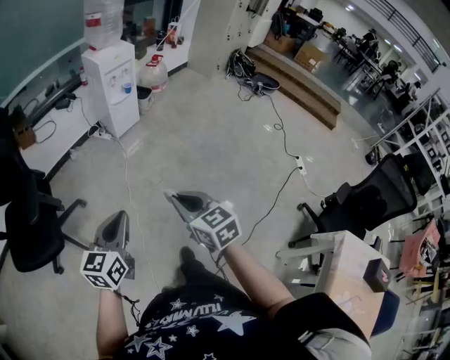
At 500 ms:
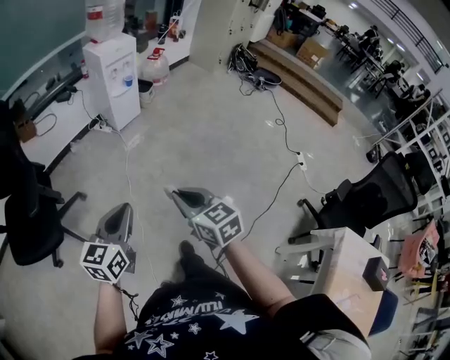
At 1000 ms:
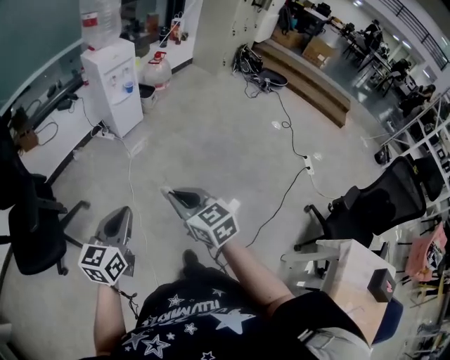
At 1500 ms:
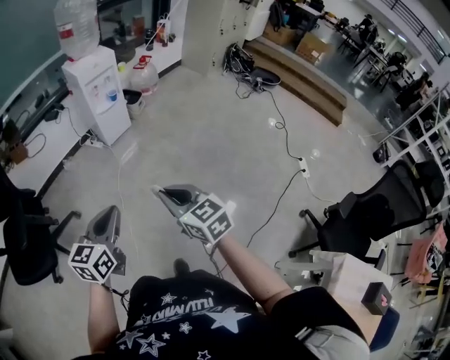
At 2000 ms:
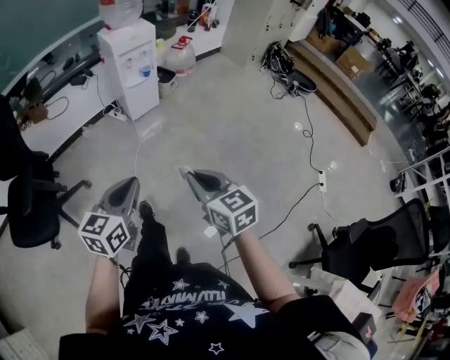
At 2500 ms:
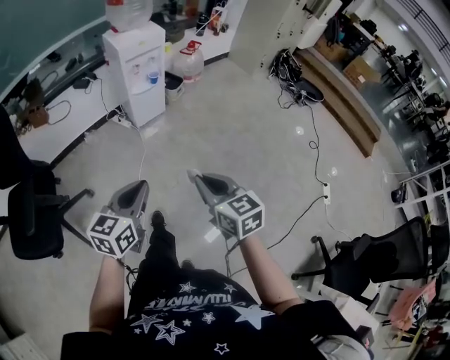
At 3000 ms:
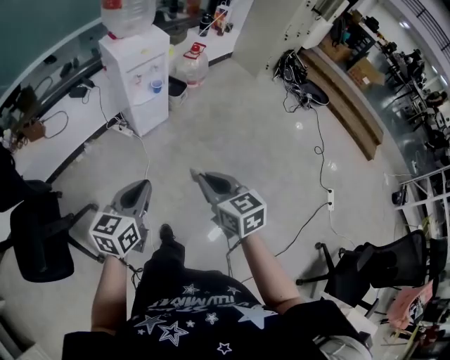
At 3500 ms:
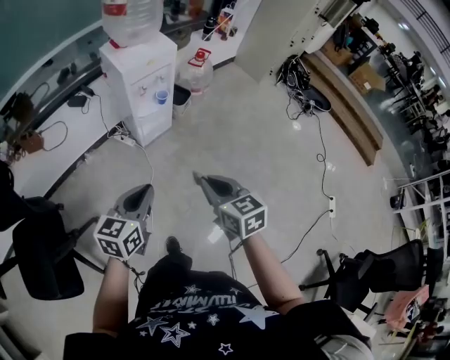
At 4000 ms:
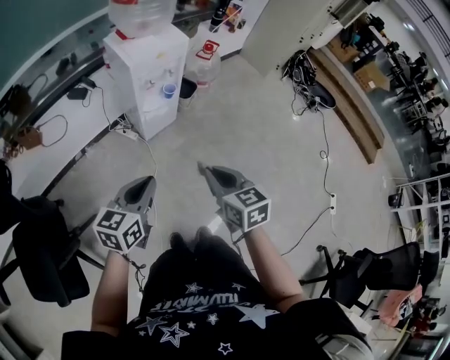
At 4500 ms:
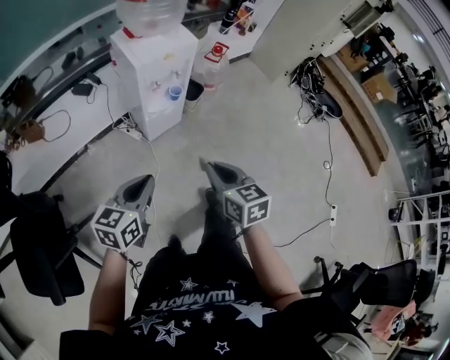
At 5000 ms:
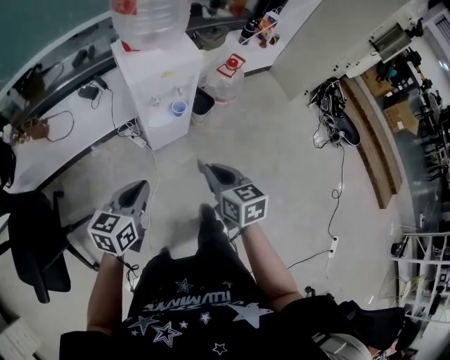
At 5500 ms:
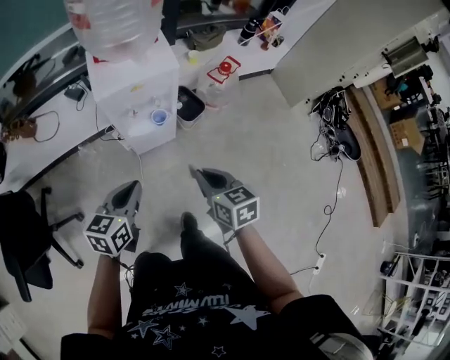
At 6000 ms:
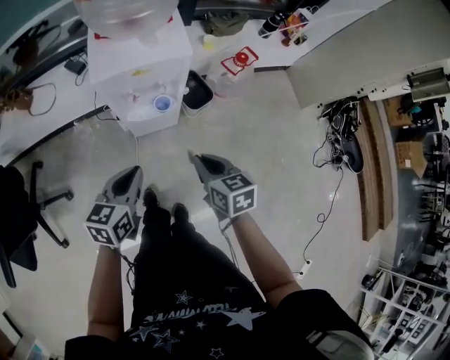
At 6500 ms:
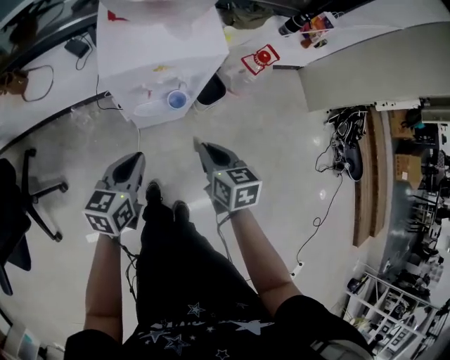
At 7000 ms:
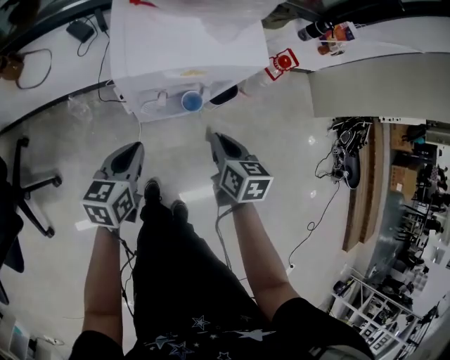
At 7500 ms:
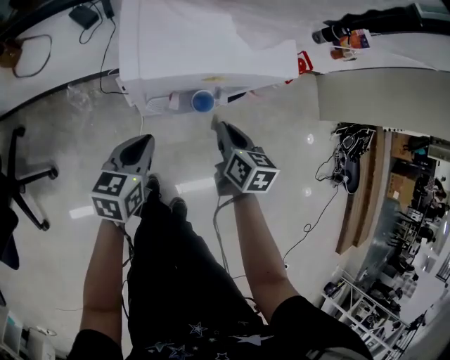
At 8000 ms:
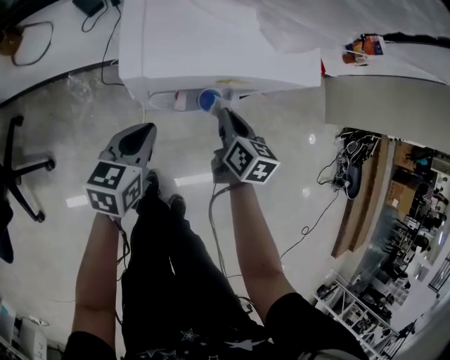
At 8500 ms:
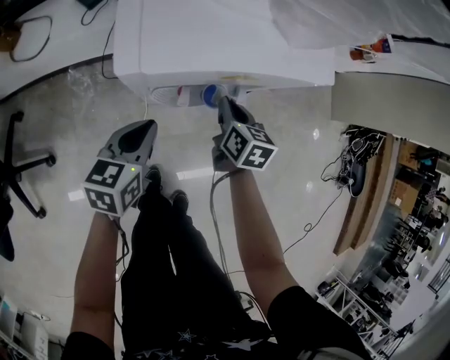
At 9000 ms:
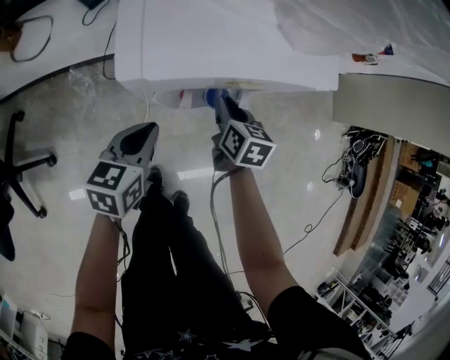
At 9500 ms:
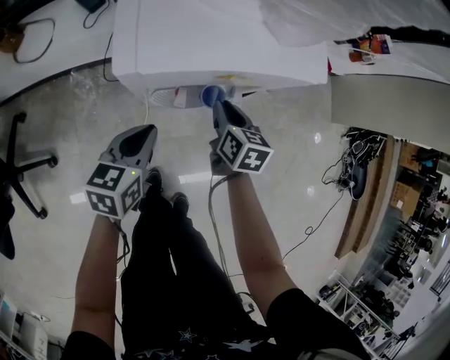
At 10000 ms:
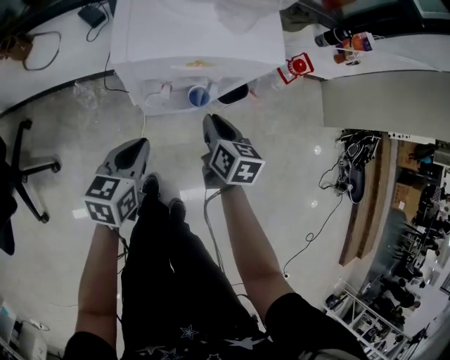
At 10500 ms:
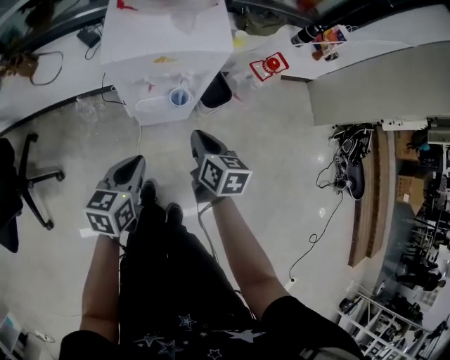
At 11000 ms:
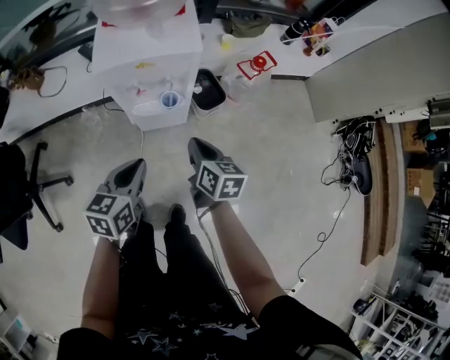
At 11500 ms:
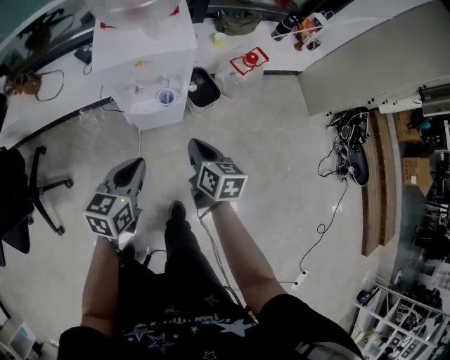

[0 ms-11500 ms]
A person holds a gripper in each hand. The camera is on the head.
0 ms to 2000 ms: The two grippers go roughly 20 cm forward and to the right.
2000 ms to 4000 ms: The two grippers travel together, forward, roughly 40 cm.
4000 ms to 6000 ms: The right gripper moves about 40 cm, and changes its angle by roughly 20 degrees, while the left gripper ends up some 35 cm from where it was, and turns by roughly 30 degrees.
6000 ms to 7500 ms: The left gripper moves downward, forward and to the left, some 25 cm. Meanwhile the right gripper heads forward and downward, covering some 25 cm.
7500 ms to 9500 ms: The right gripper shifts approximately 5 cm downward.
9500 ms to 11500 ms: The left gripper heads upward, backward and to the right, covering roughly 30 cm. The right gripper is displaced backward, upward and to the right by approximately 30 cm.

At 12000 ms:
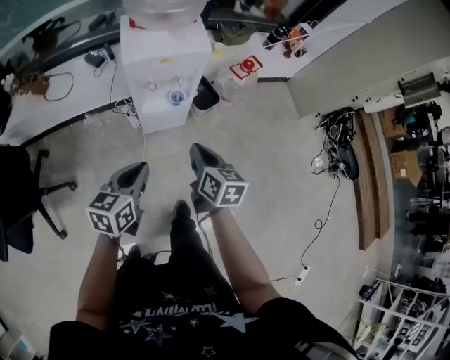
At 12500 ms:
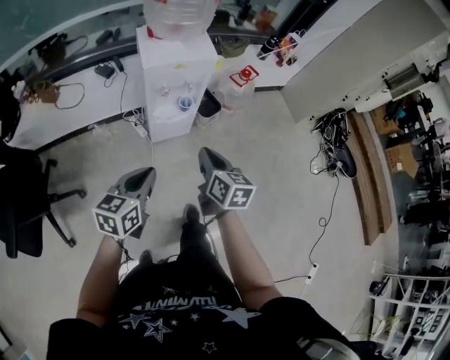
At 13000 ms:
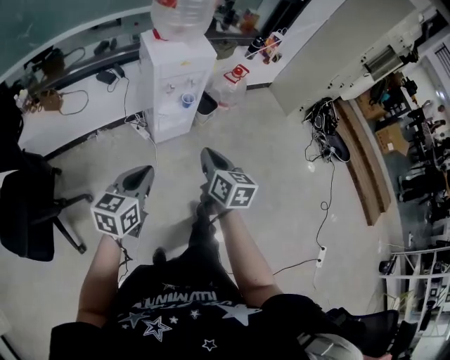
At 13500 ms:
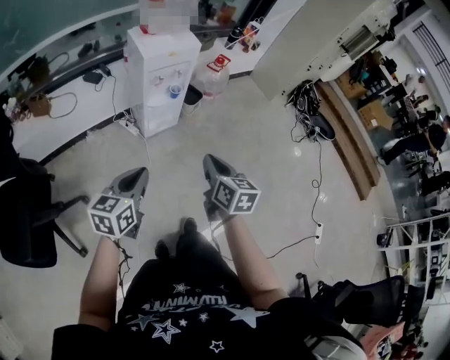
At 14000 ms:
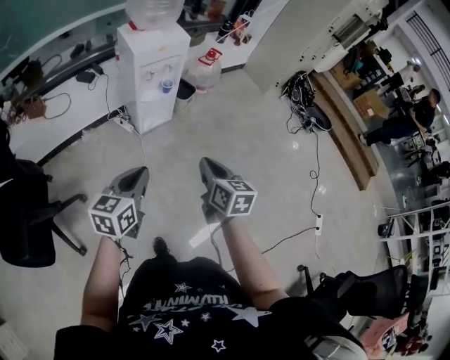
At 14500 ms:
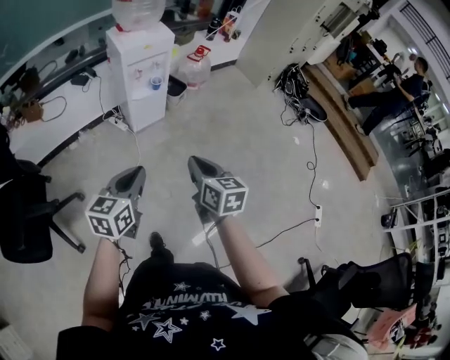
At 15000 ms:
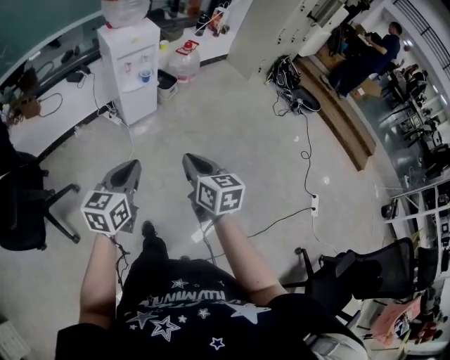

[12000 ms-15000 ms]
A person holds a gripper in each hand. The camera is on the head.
12000 ms to 13500 ms: The left gripper goes about 30 cm backward and to the left. Meanwhile the right gripper moves backward, about 30 cm.
13500 ms to 15000 ms: The two grippers go about 25 cm backward and to the right.

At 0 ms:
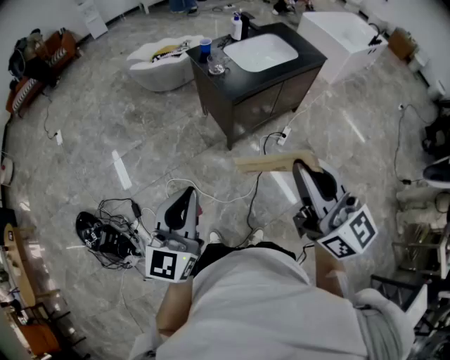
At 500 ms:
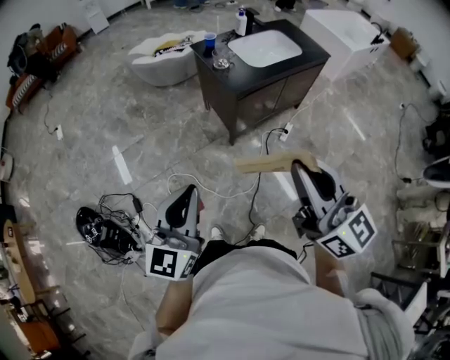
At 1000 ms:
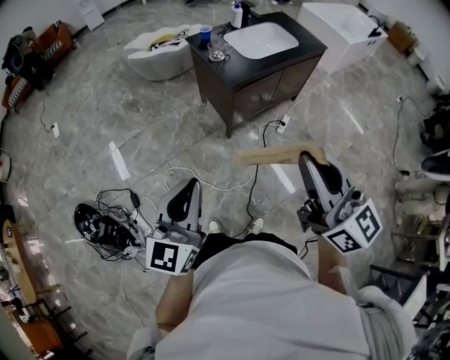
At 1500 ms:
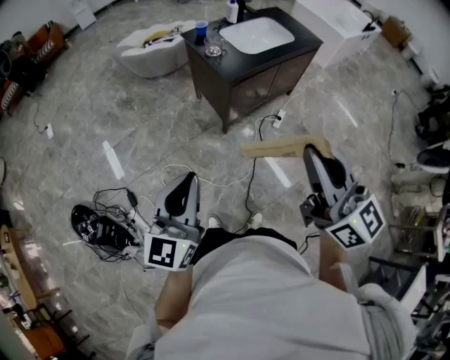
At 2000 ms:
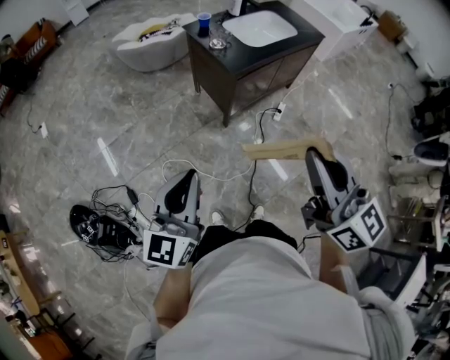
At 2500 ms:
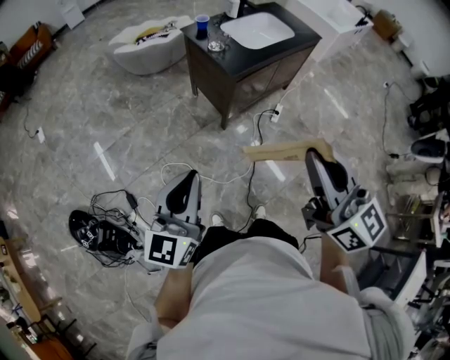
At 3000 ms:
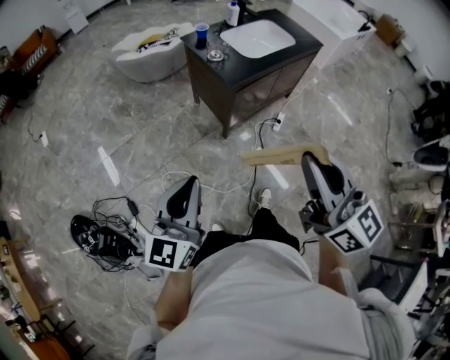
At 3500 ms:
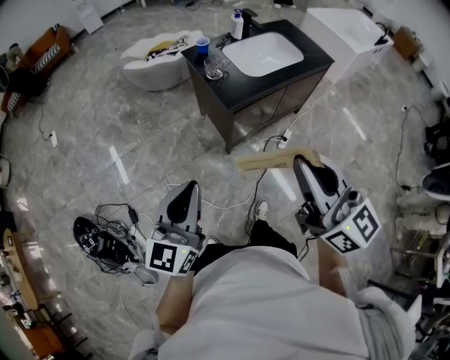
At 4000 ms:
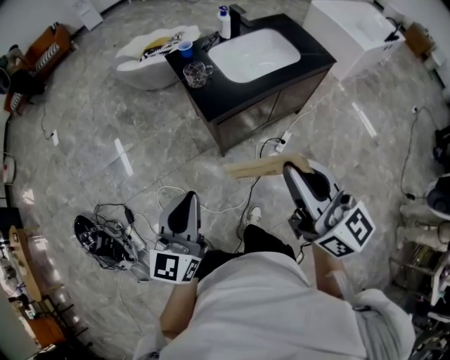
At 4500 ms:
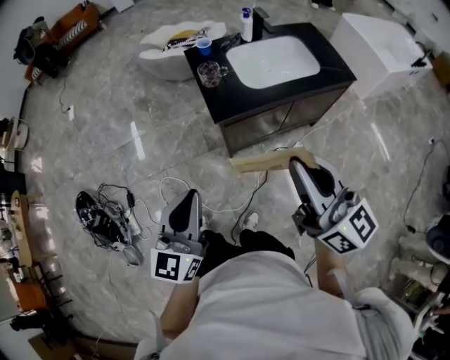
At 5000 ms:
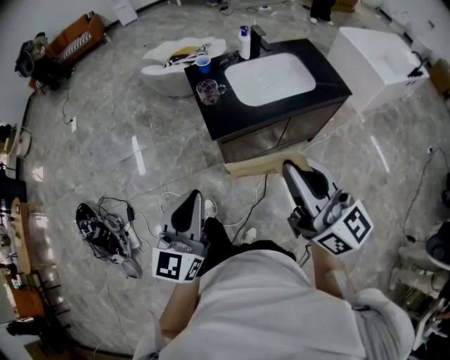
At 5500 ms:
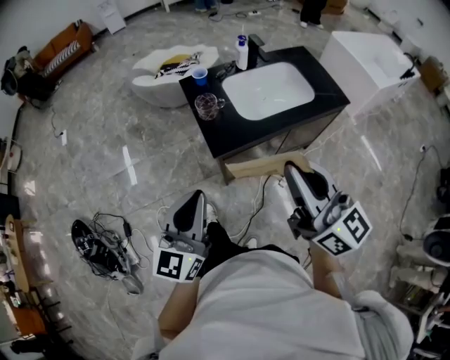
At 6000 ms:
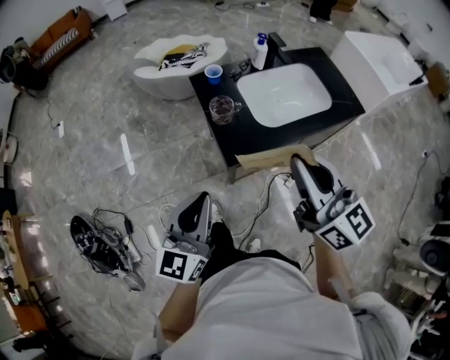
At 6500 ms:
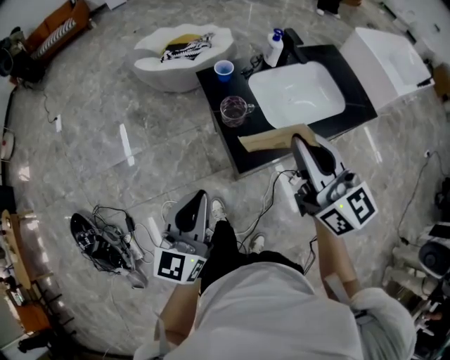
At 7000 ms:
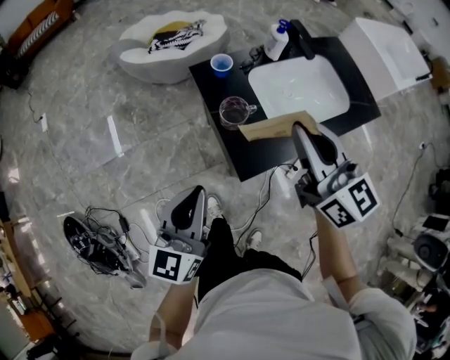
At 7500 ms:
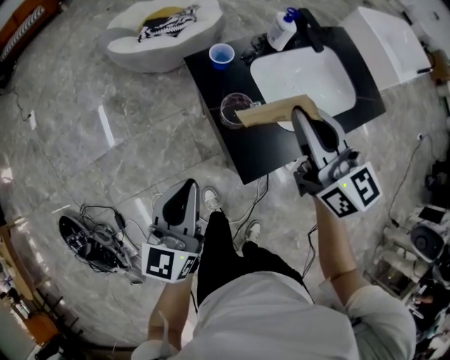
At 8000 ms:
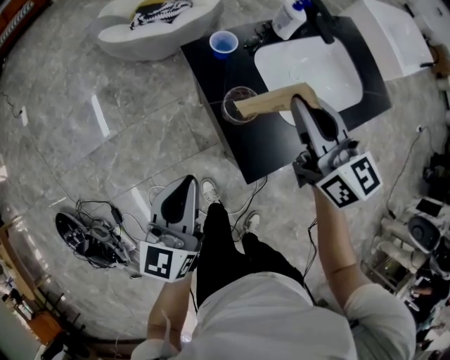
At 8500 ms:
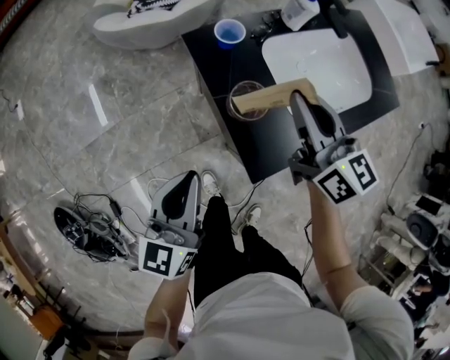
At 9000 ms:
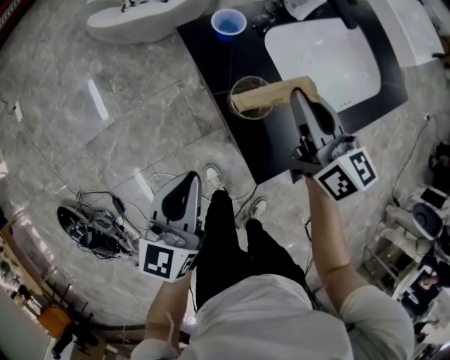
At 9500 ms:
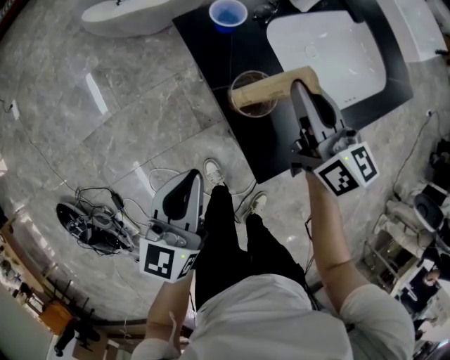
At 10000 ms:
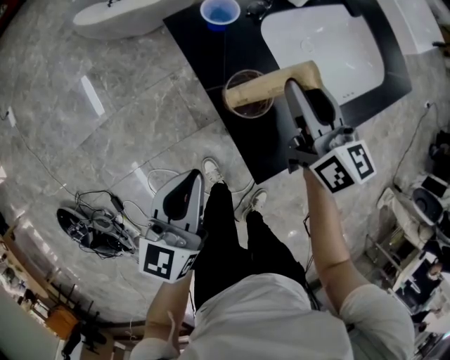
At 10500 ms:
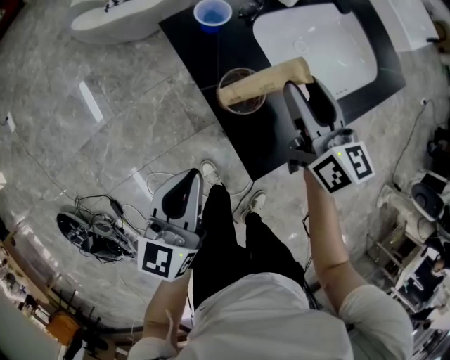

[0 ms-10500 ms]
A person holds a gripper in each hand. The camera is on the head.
0 ms to 2000 ms: The grippers both shift to the left by approximately 5 cm.
2000 ms to 4000 ms: The left gripper shifts approximately 25 cm to the right and forward. Meanwhile the right gripper moves forward and to the right, some 25 cm.
4000 ms to 6500 ms: The grippers both shift forward by roughly 25 cm.
6500 ms to 8500 ms: The two grippers go some 20 cm forward and downward.
8500 ms to 10500 ms: The right gripper heads downward, covering approximately 5 cm, and opens.

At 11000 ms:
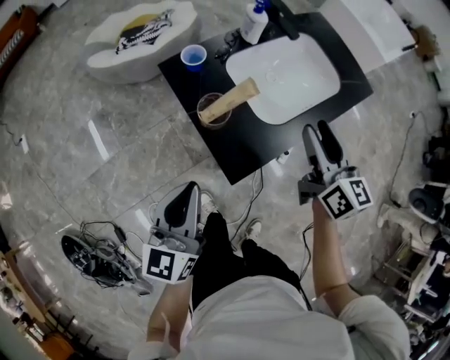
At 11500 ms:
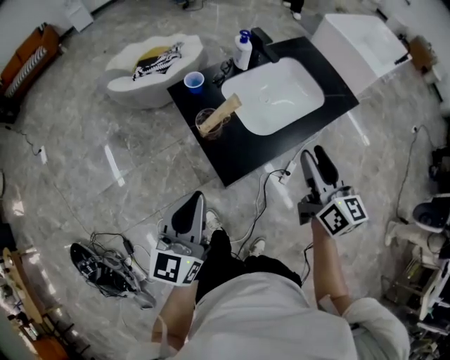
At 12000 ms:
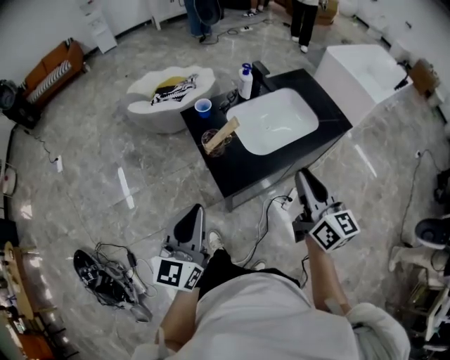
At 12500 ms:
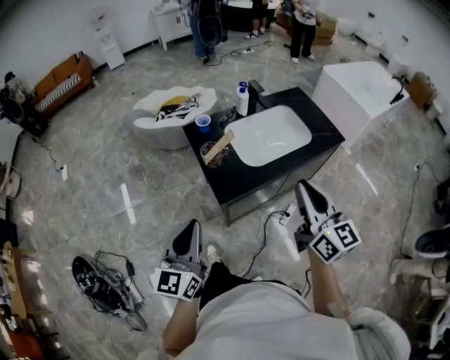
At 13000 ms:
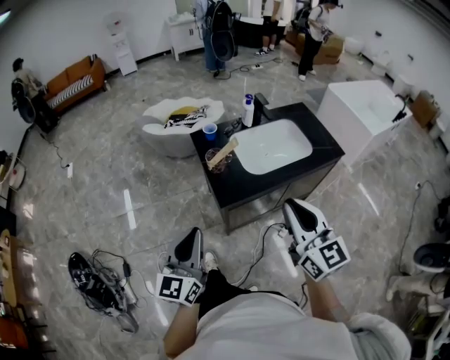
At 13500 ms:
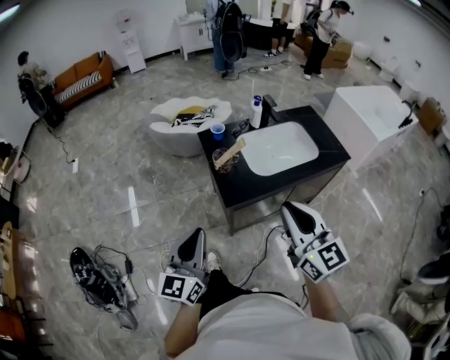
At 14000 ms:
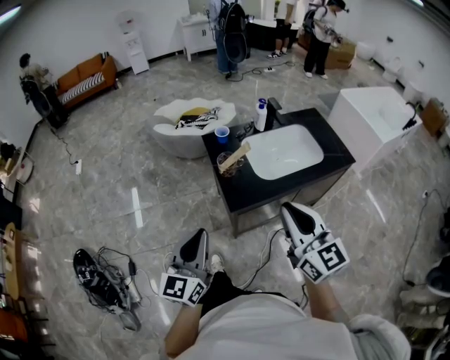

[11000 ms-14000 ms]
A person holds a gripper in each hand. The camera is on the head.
11000 ms to 12500 ms: Both grippers travel together backward and upward, about 20 cm. The right gripper closes its fingers.
12500 ms to 14000 ms: The right gripper is displaced to the left by approximately 10 cm.
